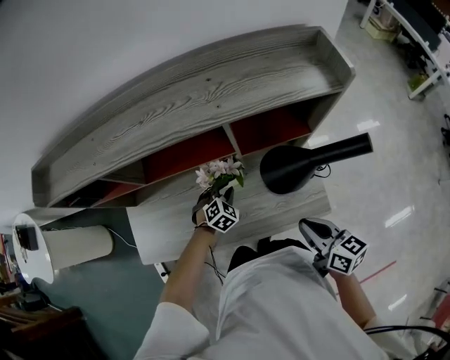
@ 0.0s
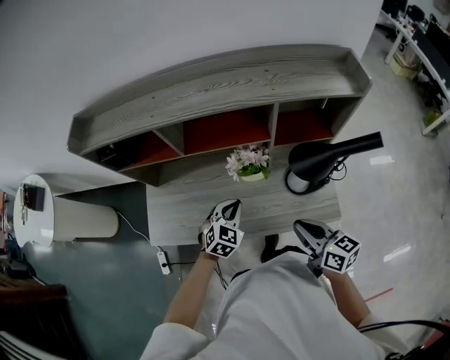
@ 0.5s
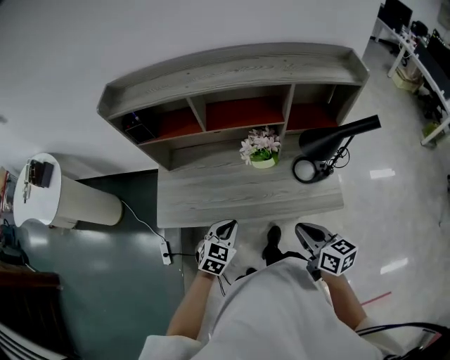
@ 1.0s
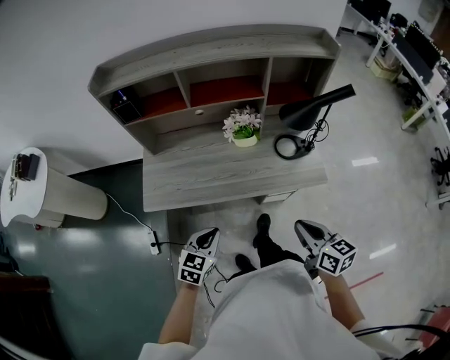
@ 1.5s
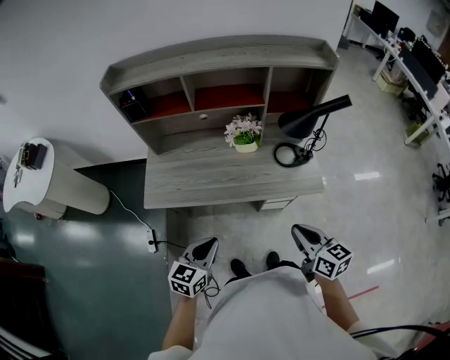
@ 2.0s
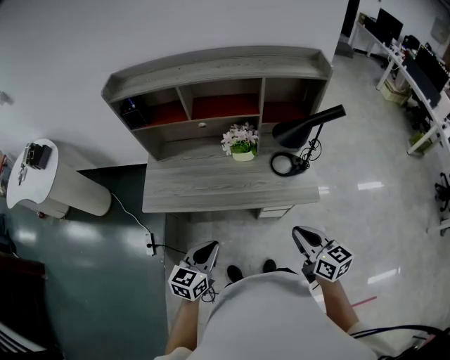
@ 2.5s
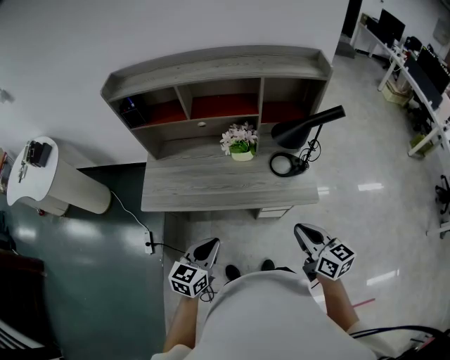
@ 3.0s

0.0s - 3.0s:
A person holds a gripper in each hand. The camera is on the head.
0.0s - 1.5s: The right gripper is displaced backward and to the left by approximately 30 cm. The left gripper is displaced backward and to the left by roughly 40 cm, and changes its angle by about 40 degrees.
1.5s - 3.0s: The right gripper moves to the right, roughly 10 cm. Meanwhile the left gripper is displaced to the right and upward by some 10 cm.

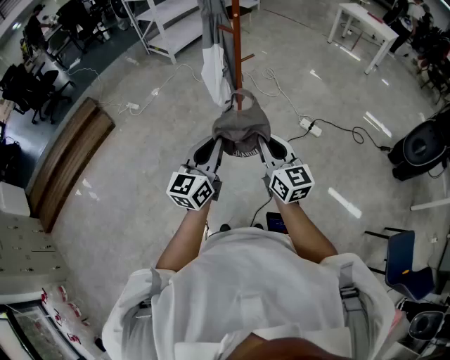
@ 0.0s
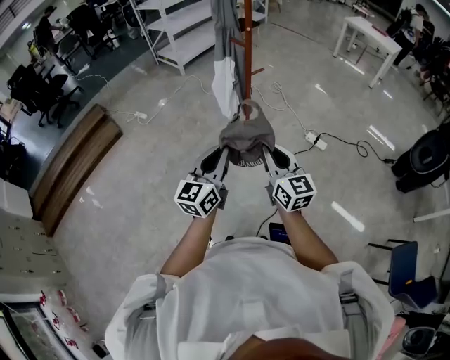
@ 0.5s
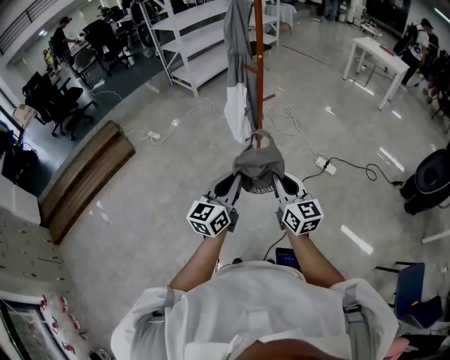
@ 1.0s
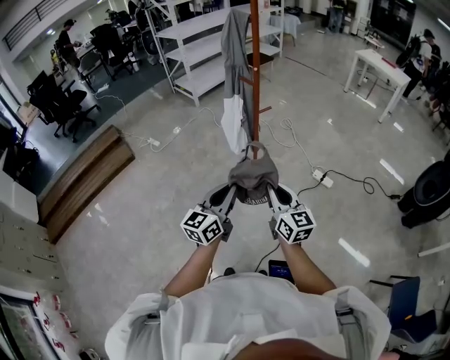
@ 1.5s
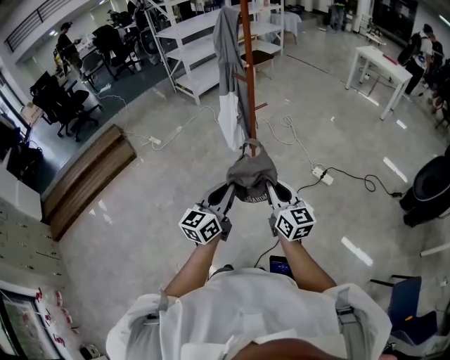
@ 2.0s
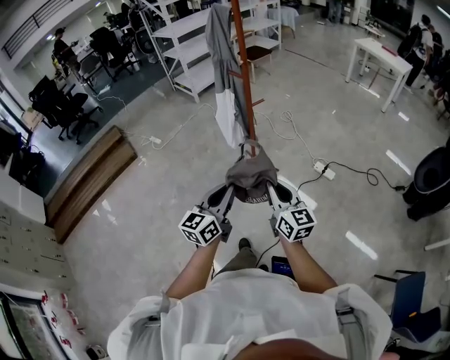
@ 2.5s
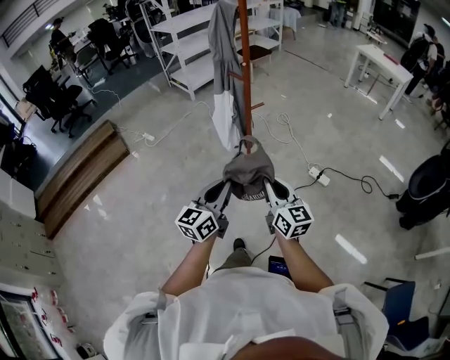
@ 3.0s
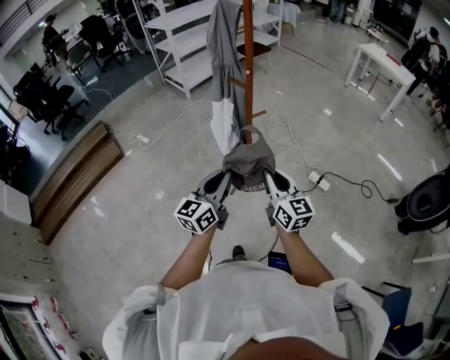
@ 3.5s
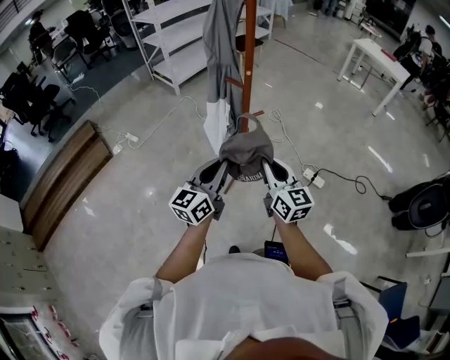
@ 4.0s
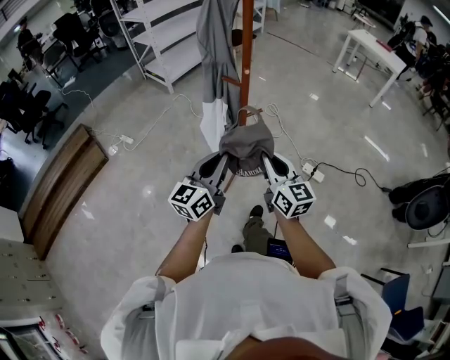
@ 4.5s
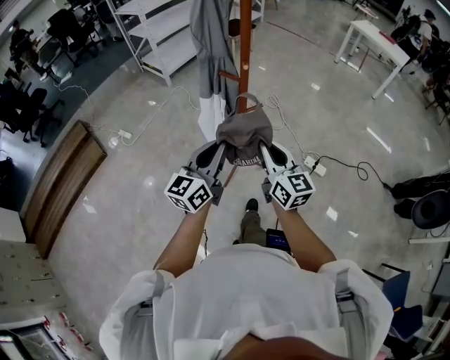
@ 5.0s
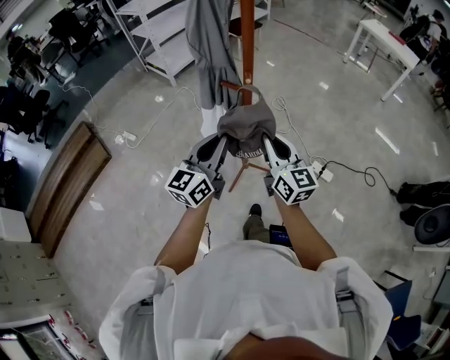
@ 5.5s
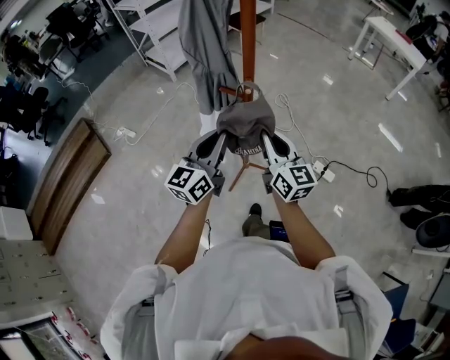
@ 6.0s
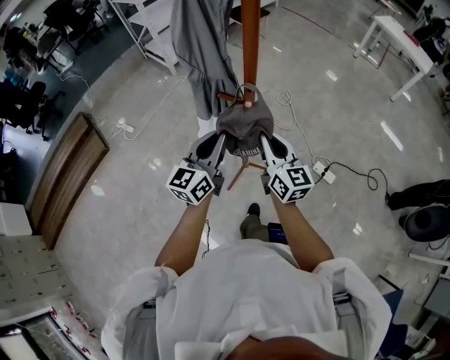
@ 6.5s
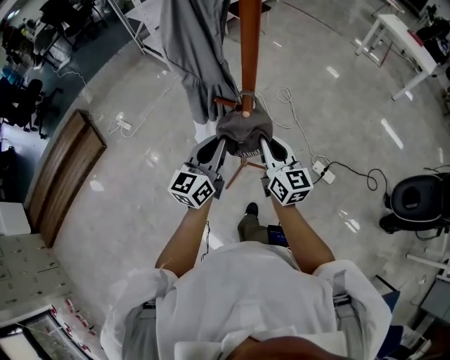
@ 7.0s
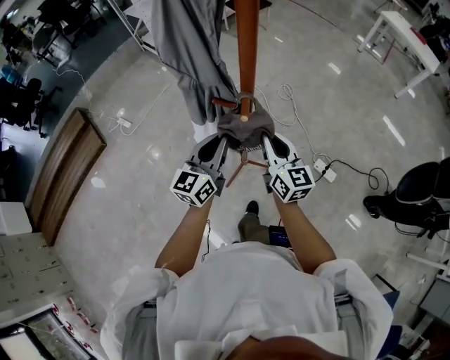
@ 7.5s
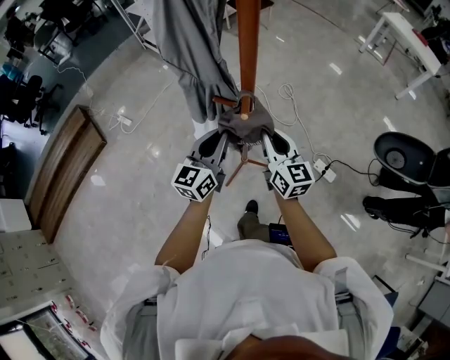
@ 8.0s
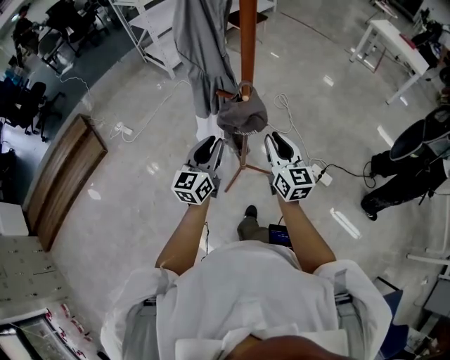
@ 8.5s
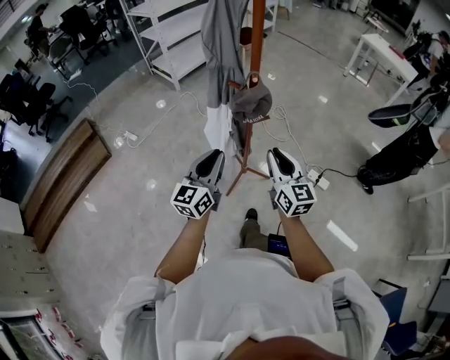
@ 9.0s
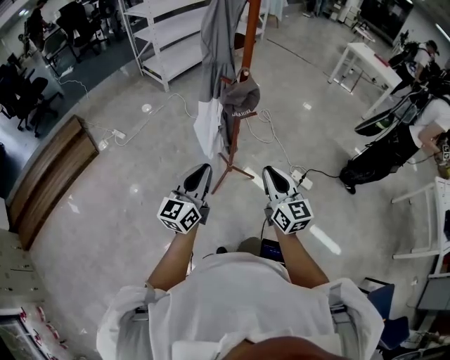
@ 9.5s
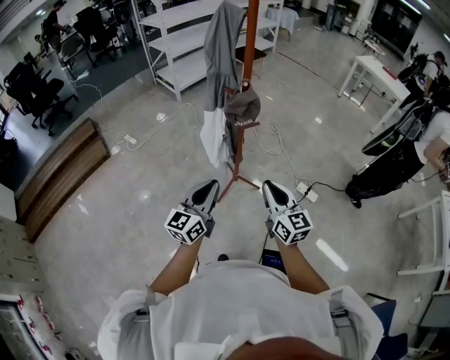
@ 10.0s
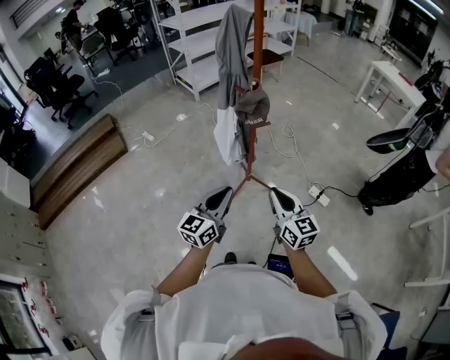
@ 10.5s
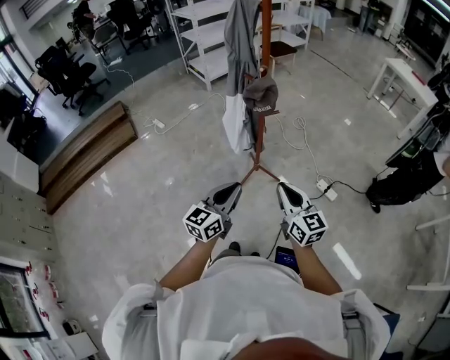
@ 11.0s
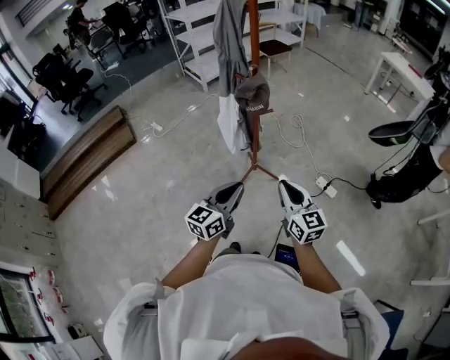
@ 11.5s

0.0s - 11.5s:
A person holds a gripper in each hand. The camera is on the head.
0.0s - 2.0s: The left gripper travels to the right by some 5 cm.
2.0s - 4.0s: The two grippers go about 25 cm forward.
4.0s - 6.0s: Both grippers travel together forward, some 25 cm.
6.0s - 7.5s: Both grippers travel together forward and downward, roughly 15 cm.
7.5s - 9.5s: The grippers both shift backward by roughly 35 cm.
9.5s - 11.5s: The right gripper travels backward and to the right by approximately 10 cm. Meanwhile the left gripper moves to the right and backward, roughly 15 cm.

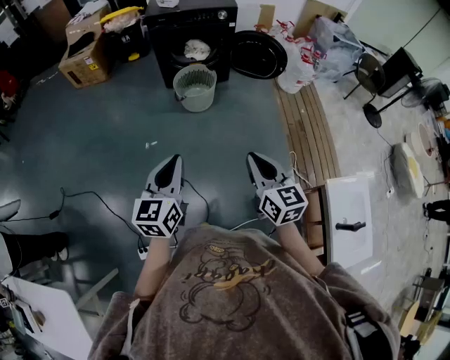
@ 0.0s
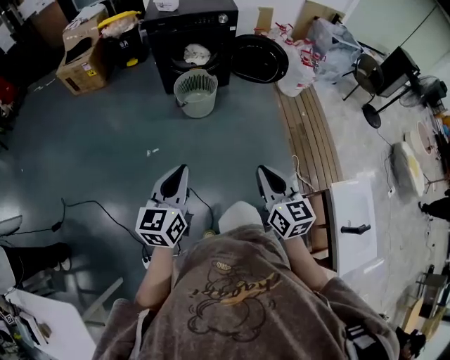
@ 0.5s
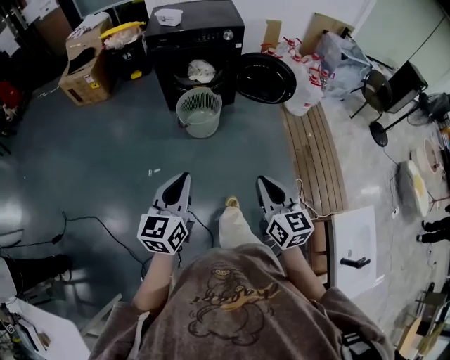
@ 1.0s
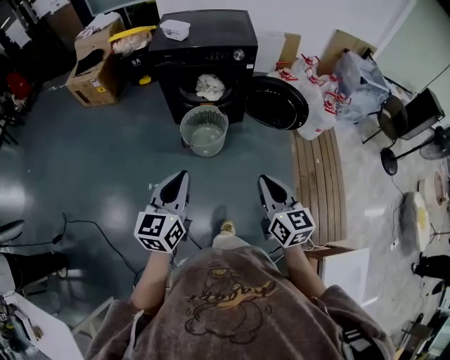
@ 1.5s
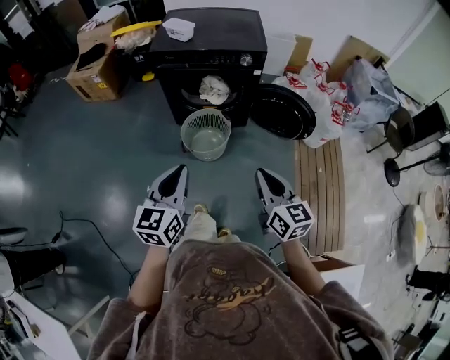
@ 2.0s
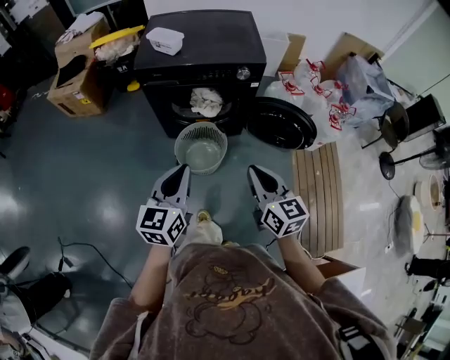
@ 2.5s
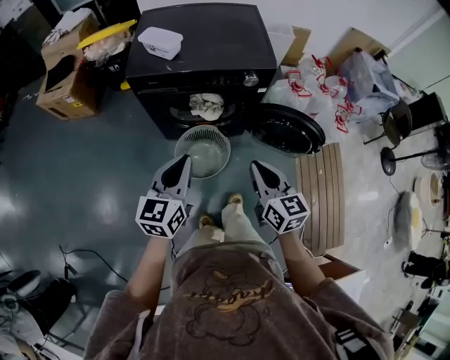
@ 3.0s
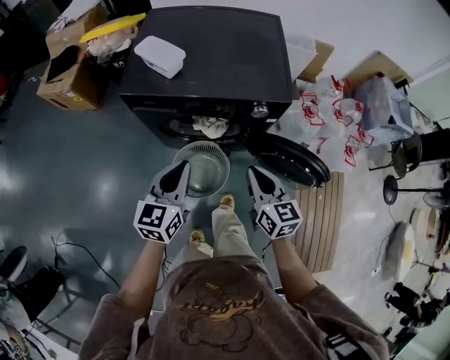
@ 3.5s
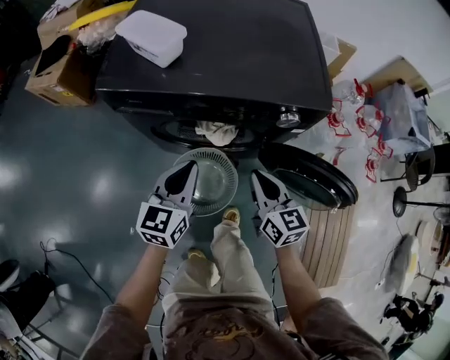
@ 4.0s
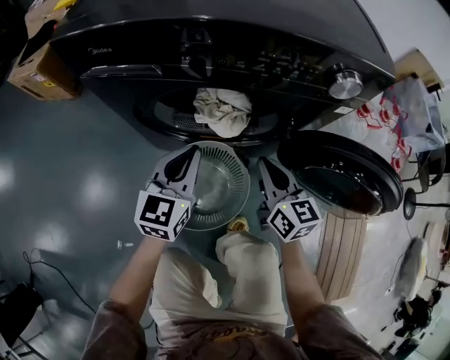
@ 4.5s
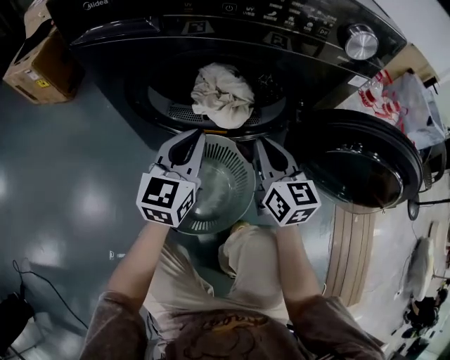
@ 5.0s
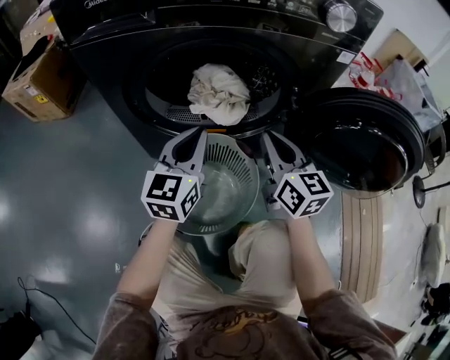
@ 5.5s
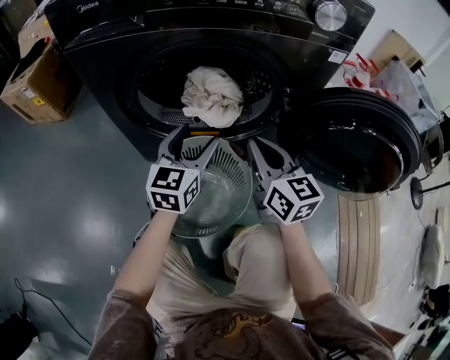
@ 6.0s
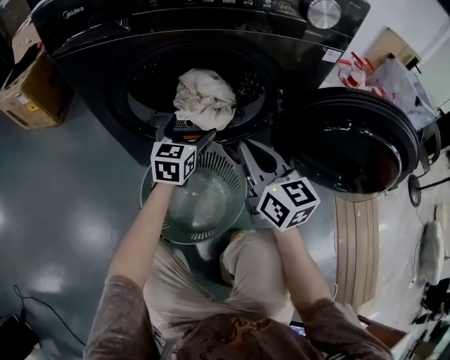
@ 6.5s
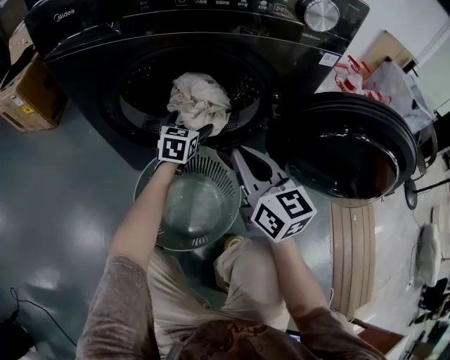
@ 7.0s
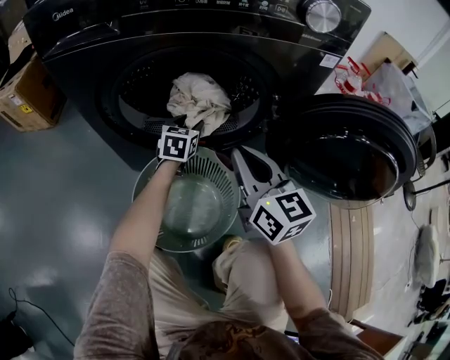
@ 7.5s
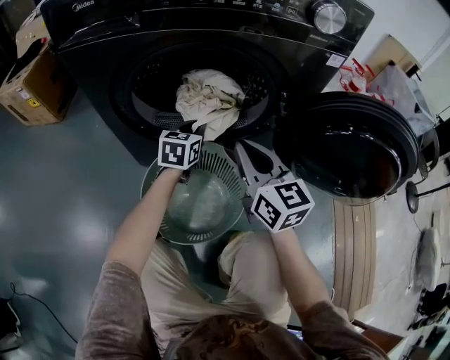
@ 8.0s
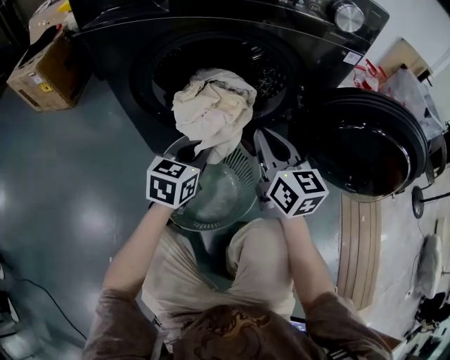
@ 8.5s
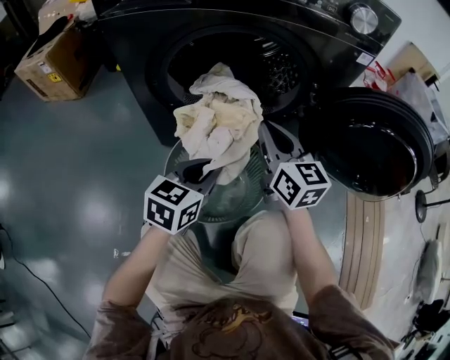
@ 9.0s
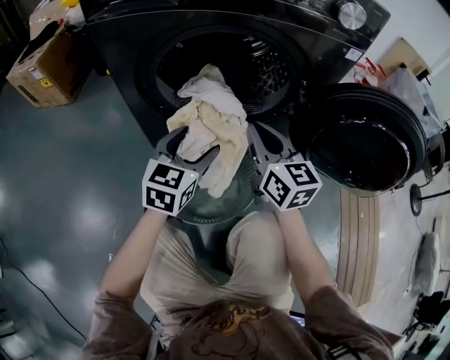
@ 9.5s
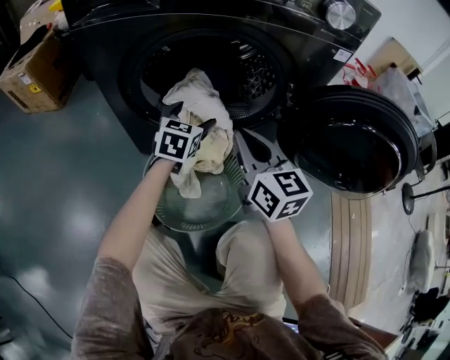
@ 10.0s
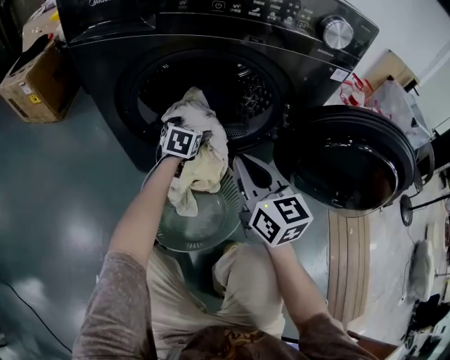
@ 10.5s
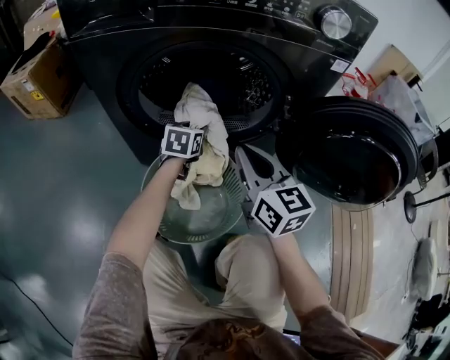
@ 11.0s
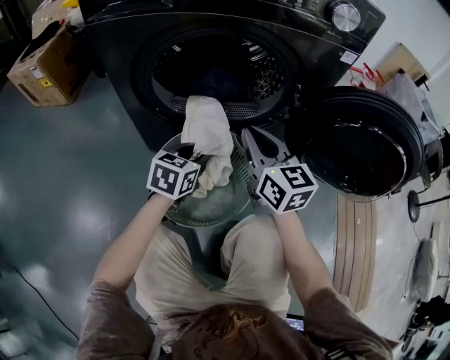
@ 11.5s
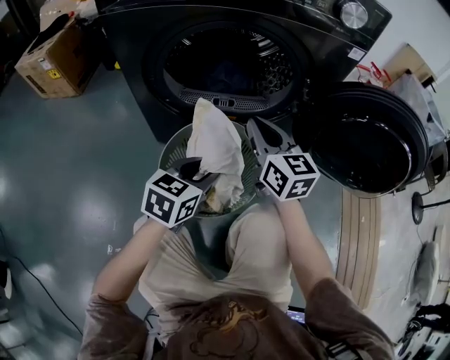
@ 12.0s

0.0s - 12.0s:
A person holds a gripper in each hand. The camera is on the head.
0.0s - 2.0s: The pair of grippers is taken forward, about 40 cm.
2.0s - 4.0s: The pair of grippers is taken forward, approximately 50 cm. The grippers both shift downward by approximately 25 cm.
4.0s - 6.0s: Both grippers move downward, some 25 cm. The left gripper opens.
6.0s - 8.0s: The left gripper goes approximately 15 cm downward and forward, and closes.
8.0s - 10.0s: The left gripper moves approximately 20 cm backward and comes back, and opens.
10.0s - 12.0s: The left gripper shifts about 20 cm backward, and closes.
